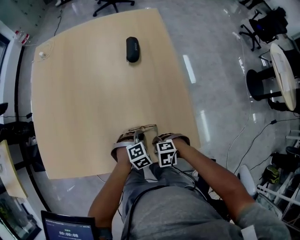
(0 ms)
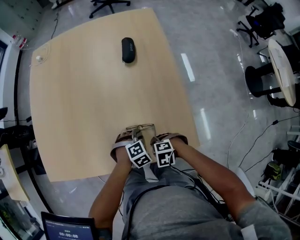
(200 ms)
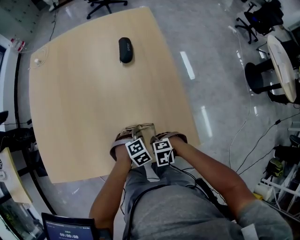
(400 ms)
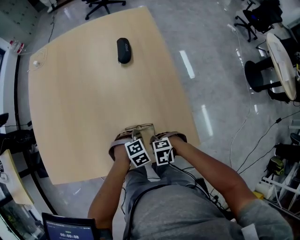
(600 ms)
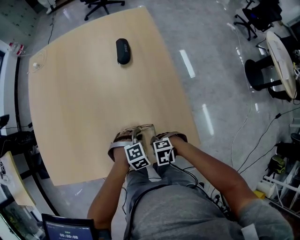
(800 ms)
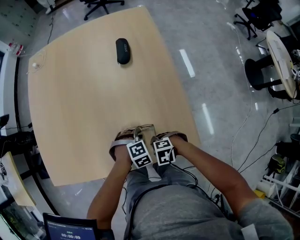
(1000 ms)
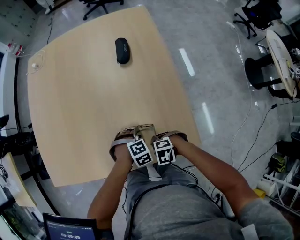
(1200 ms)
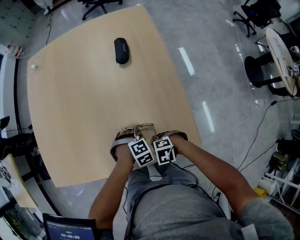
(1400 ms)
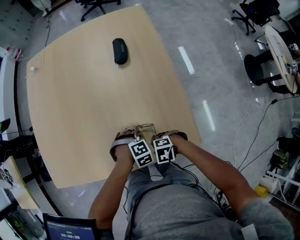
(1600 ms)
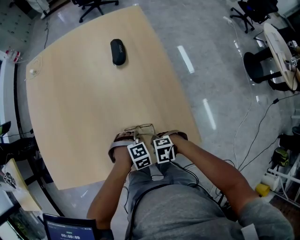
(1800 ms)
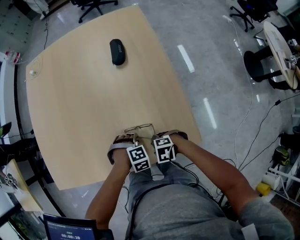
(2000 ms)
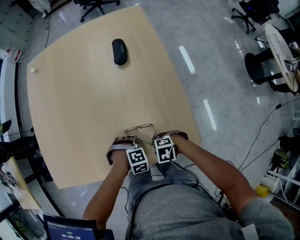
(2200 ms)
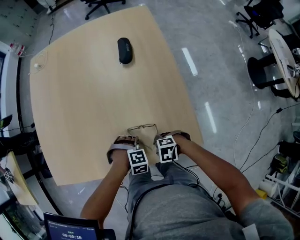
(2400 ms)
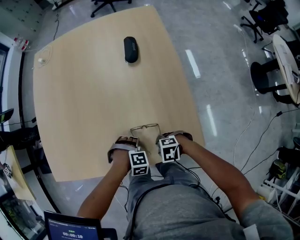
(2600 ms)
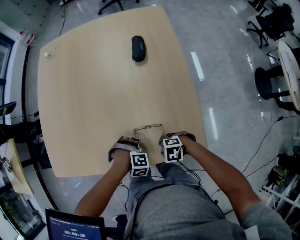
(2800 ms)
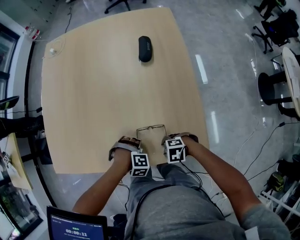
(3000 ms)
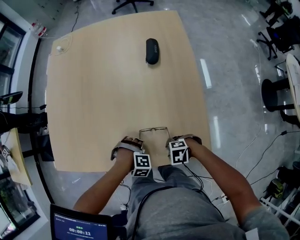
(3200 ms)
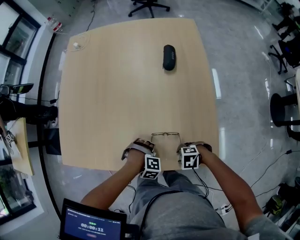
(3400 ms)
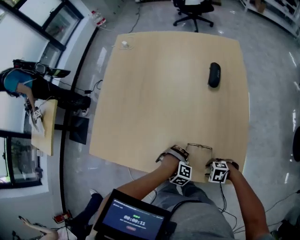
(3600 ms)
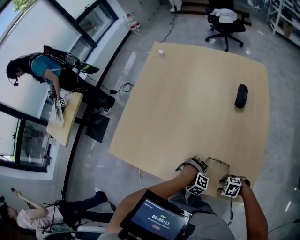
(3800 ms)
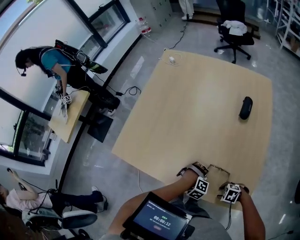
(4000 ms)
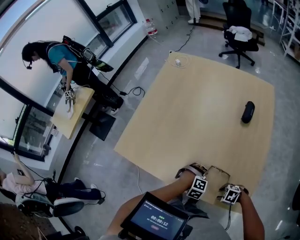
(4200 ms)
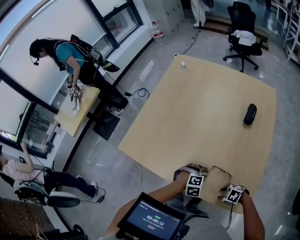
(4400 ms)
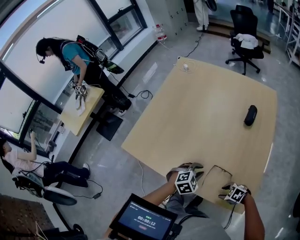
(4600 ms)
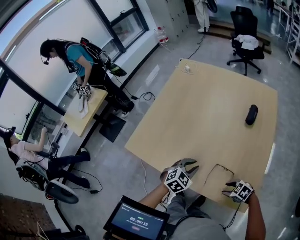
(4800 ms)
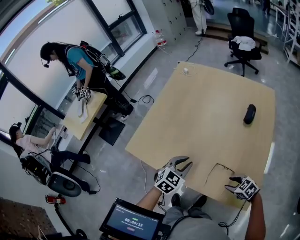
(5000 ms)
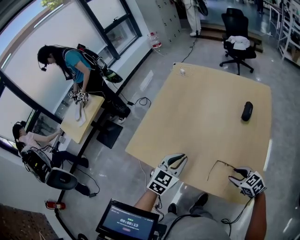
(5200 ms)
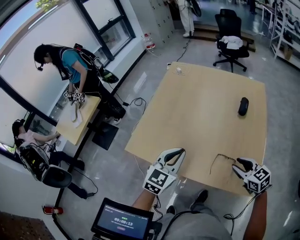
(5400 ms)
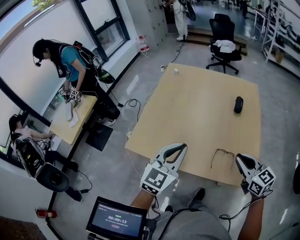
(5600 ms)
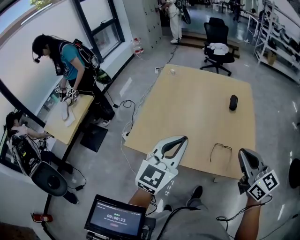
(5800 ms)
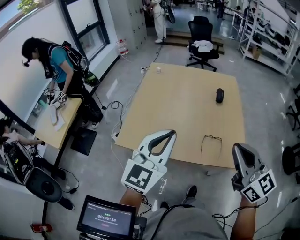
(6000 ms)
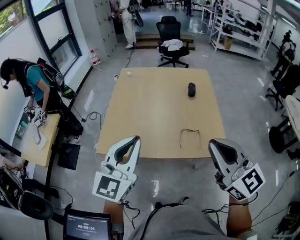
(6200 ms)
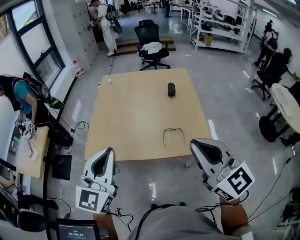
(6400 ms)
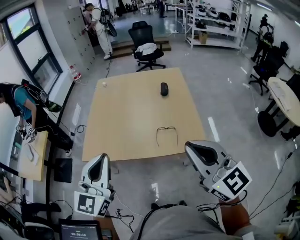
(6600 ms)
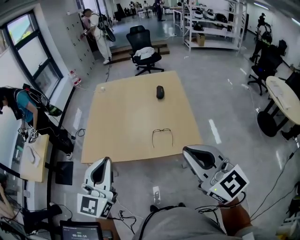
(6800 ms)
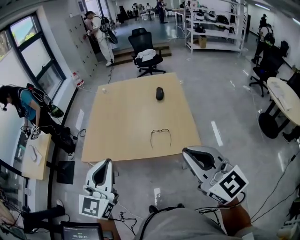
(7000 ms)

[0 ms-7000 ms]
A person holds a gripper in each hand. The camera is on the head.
0 ms to 1400 ms: The grippers move only a little.
1400 ms to 2800 ms: The left gripper shifts by approximately 10 cm, and changes its angle by about 20 degrees.
2800 ms to 4200 ms: The left gripper turns by approximately 20 degrees.
4200 ms to 5600 ms: The two grippers go about 35 cm upward. The right gripper tilts its fingers approximately 50 degrees upward, and closes up; the left gripper angles its fingers upward, by about 60 degrees.
5600 ms to 7000 ms: Both grippers travel together backward and upward, about 35 cm. The right gripper turns by roughly 30 degrees.

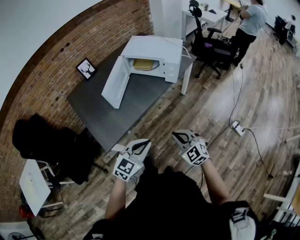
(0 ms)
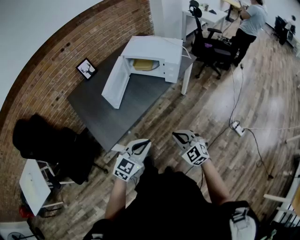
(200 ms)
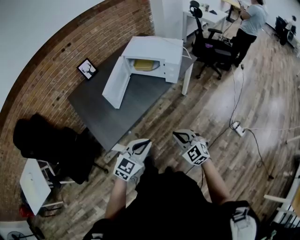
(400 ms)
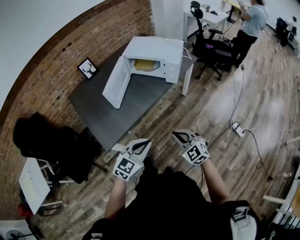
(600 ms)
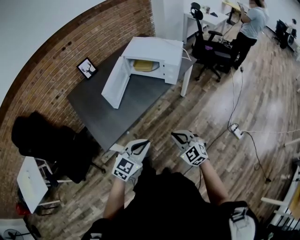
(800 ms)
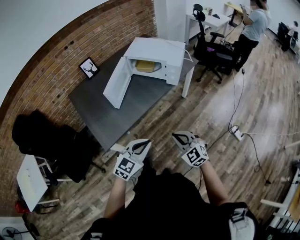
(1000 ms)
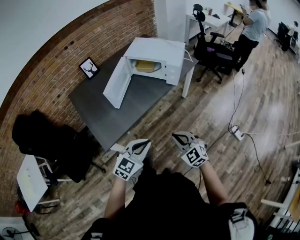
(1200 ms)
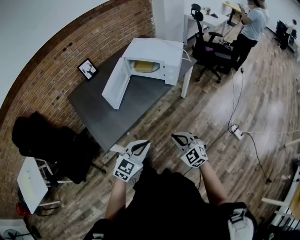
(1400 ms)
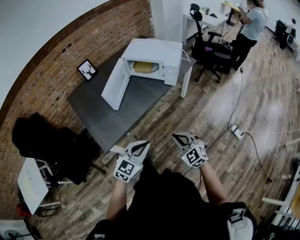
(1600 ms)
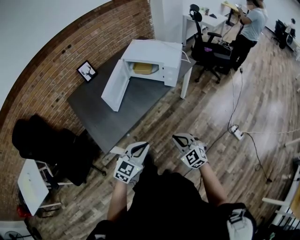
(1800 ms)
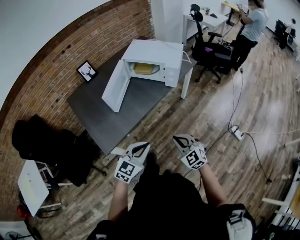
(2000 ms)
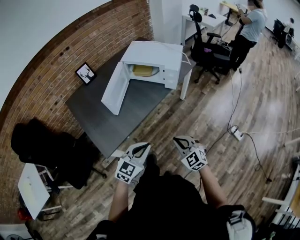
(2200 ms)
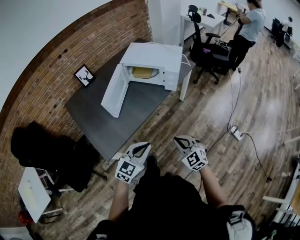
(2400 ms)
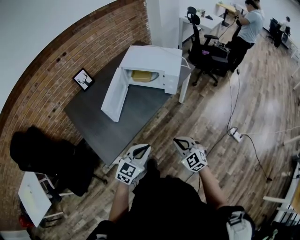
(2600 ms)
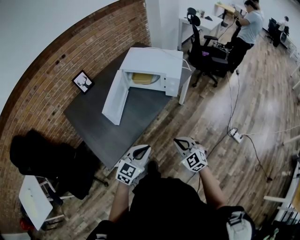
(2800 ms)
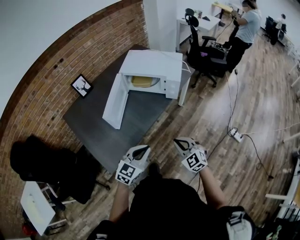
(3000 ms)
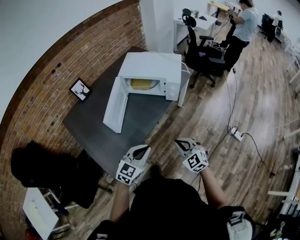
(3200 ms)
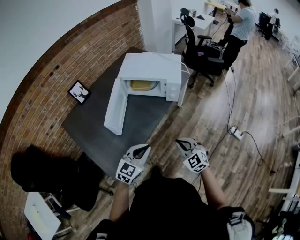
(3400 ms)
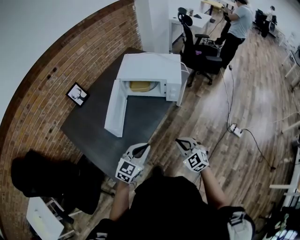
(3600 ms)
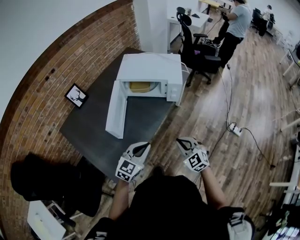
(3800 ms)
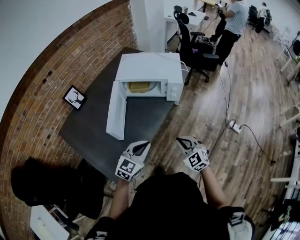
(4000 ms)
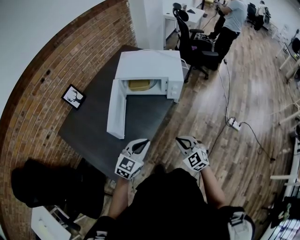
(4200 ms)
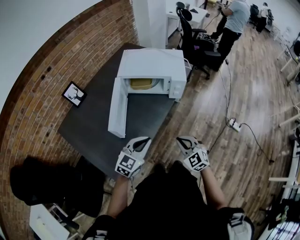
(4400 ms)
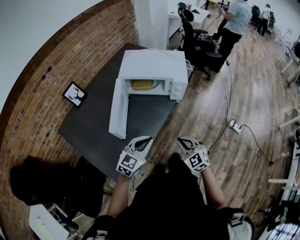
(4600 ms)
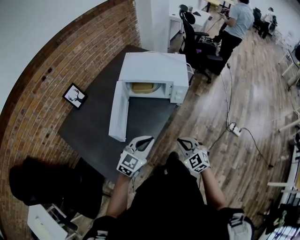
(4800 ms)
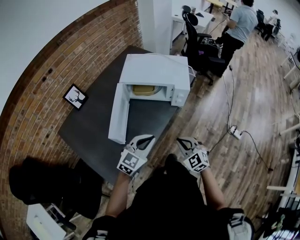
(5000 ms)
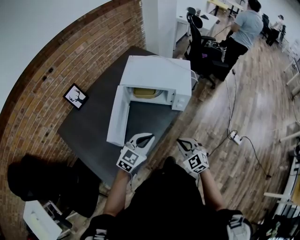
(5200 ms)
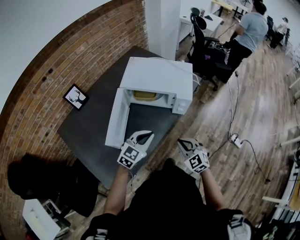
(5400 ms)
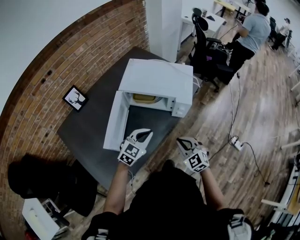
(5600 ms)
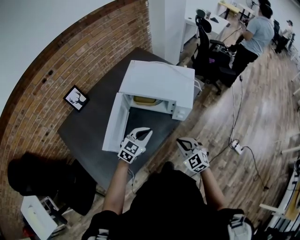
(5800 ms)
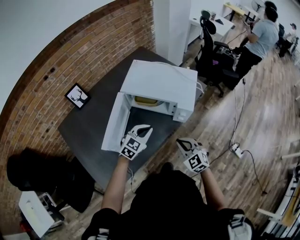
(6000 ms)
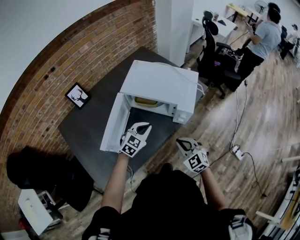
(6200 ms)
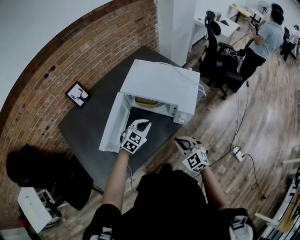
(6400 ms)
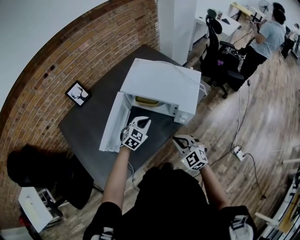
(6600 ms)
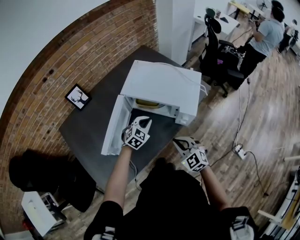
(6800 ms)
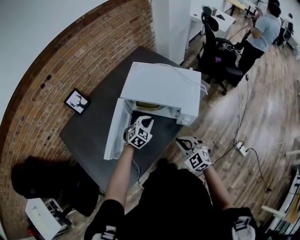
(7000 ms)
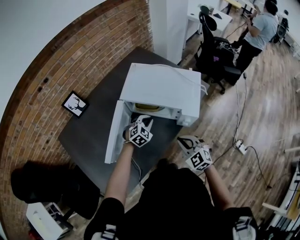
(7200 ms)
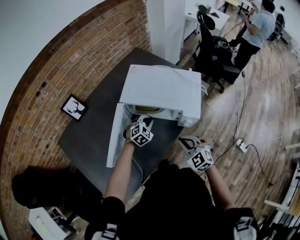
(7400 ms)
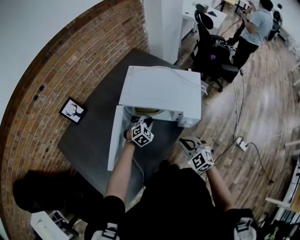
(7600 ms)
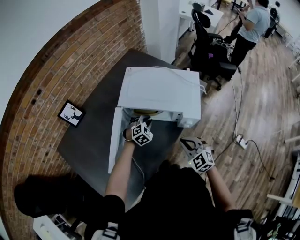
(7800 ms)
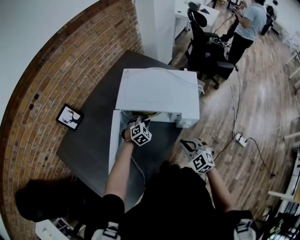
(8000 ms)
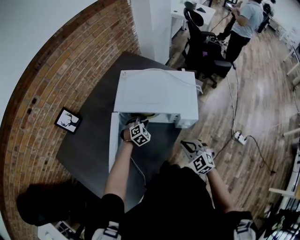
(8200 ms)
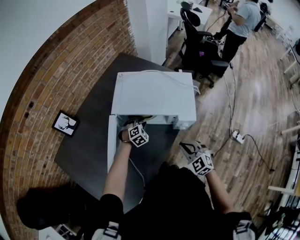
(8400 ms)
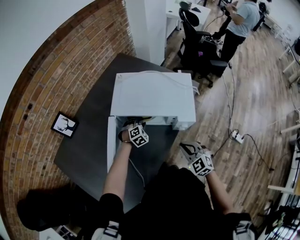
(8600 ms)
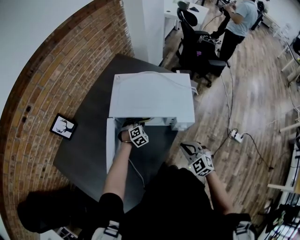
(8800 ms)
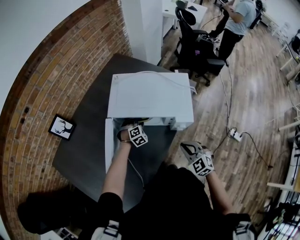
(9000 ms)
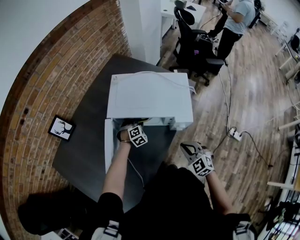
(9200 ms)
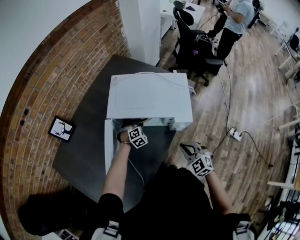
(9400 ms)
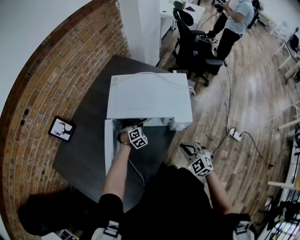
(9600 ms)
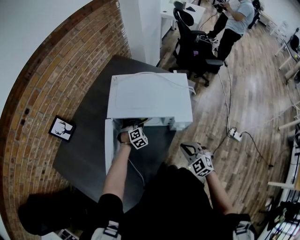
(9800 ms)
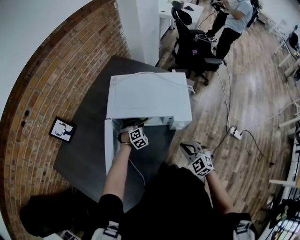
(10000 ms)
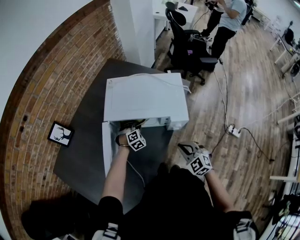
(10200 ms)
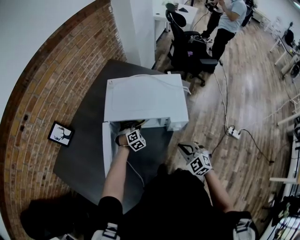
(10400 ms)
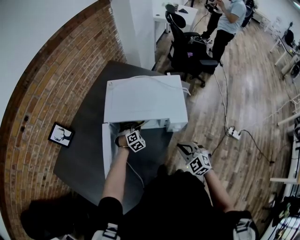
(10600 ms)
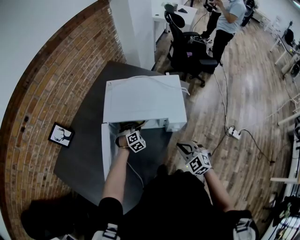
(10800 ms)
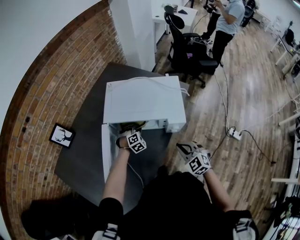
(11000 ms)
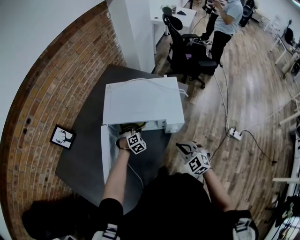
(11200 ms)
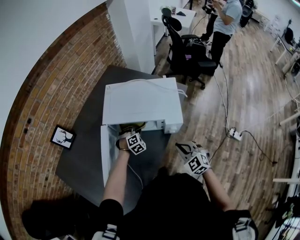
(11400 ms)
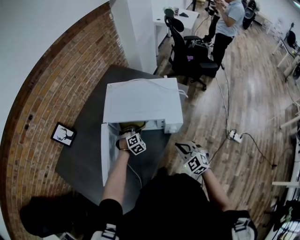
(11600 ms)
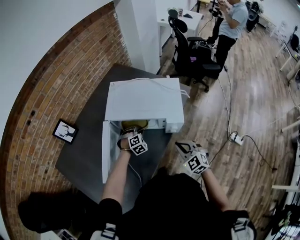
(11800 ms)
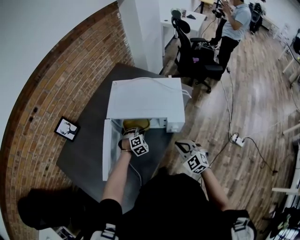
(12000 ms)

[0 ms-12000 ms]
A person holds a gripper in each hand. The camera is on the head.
0 ms to 1600 ms: The grippers move only a little.
1600 ms to 3000 ms: The left gripper heads forward and to the left, covering approximately 15 cm; the right gripper is displaced forward by roughly 10 cm.
3000 ms to 4400 ms: The right gripper shifts approximately 5 cm to the left, while the left gripper moves forward and to the left, some 10 cm.
4400 ms to 6000 ms: The grippers both shift forward by about 20 cm.
6000 ms to 7600 ms: The right gripper travels forward by some 5 cm, while the left gripper goes roughly 20 cm forward and downward, and changes its angle by some 30 degrees.
7600 ms to 9000 ms: The left gripper heads downward and forward, covering approximately 10 cm.
9000 ms to 10400 ms: The grippers stay close to where they were, moving slightly.
10400 ms to 12000 ms: The left gripper moves backward, some 5 cm.

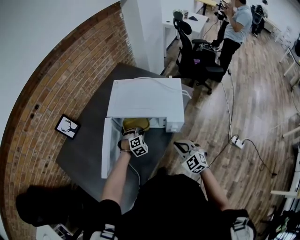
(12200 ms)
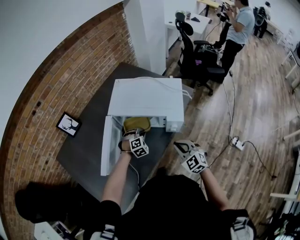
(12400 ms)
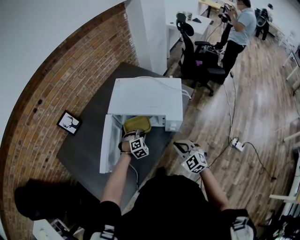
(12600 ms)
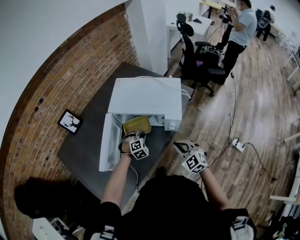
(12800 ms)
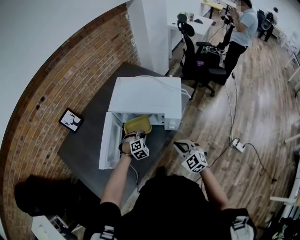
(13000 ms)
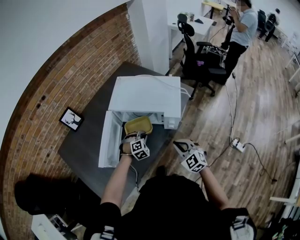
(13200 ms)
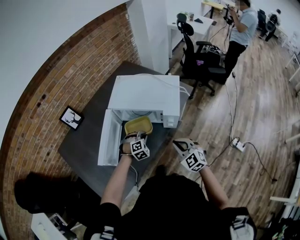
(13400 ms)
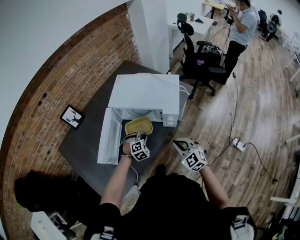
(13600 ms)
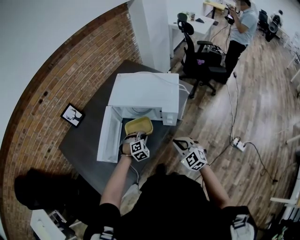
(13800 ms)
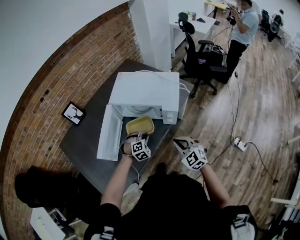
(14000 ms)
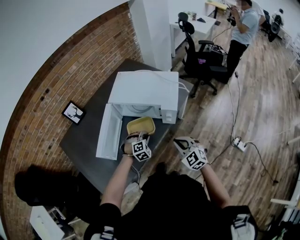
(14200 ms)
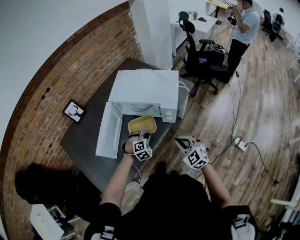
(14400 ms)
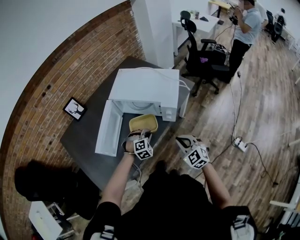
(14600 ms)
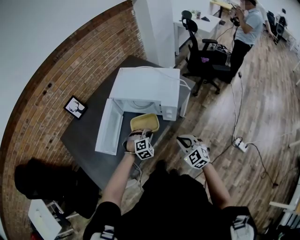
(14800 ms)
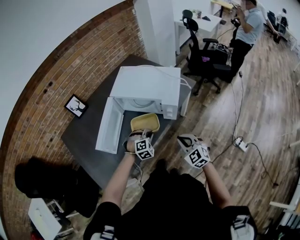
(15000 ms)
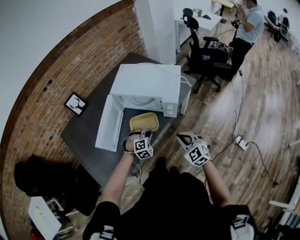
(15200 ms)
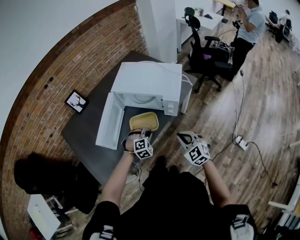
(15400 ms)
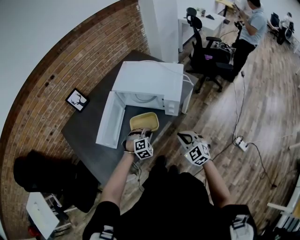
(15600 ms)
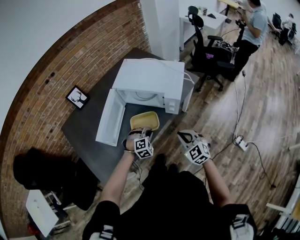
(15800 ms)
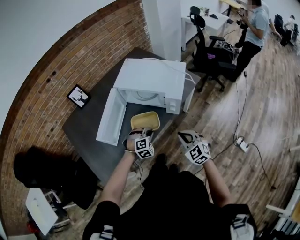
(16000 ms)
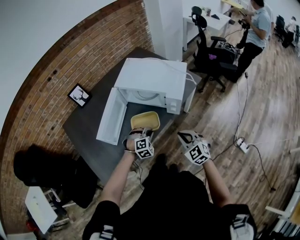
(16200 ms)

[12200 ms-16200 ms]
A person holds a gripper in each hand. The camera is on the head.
12200 ms to 13600 ms: The right gripper is displaced backward by some 5 cm. The left gripper moves backward, about 10 cm.
13600 ms to 14800 ms: The right gripper moves approximately 5 cm. Meanwhile the left gripper moves backward, about 5 cm.
14800 ms to 16200 ms: The grippers make only small movements.

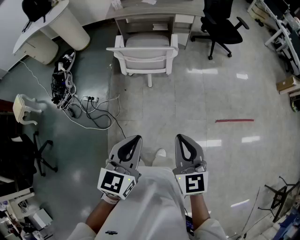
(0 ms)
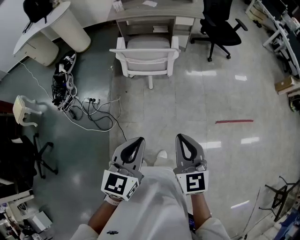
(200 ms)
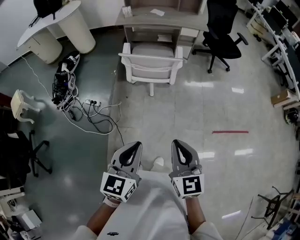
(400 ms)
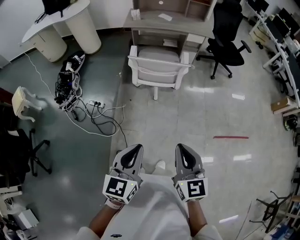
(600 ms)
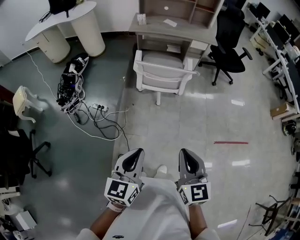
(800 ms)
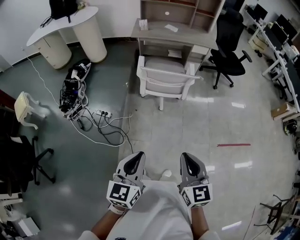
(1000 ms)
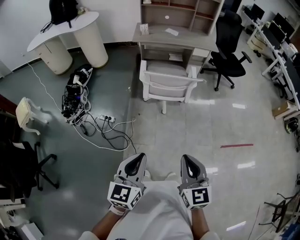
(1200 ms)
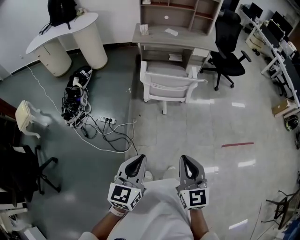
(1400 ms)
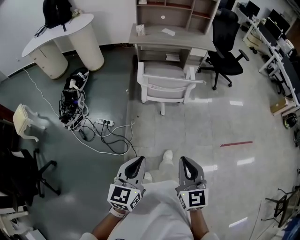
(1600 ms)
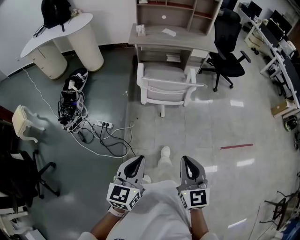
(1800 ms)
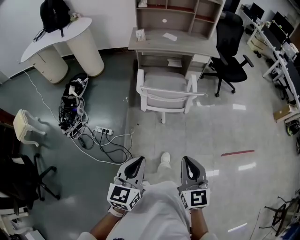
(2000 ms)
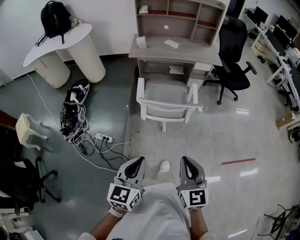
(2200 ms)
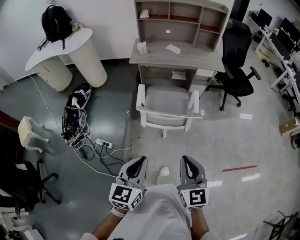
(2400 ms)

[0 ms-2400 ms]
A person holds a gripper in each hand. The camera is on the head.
0 ms to 1200 ms: Both grippers travel together to the left, approximately 20 cm.
1200 ms to 2400 ms: The two grippers go approximately 25 cm forward.
